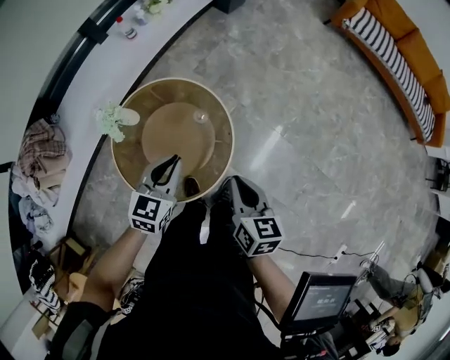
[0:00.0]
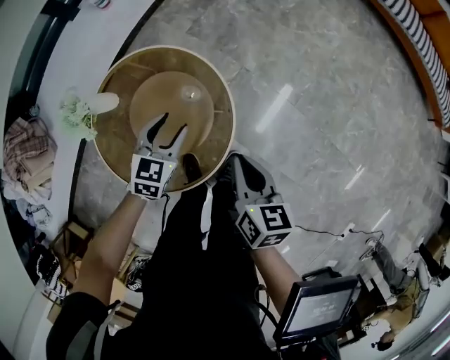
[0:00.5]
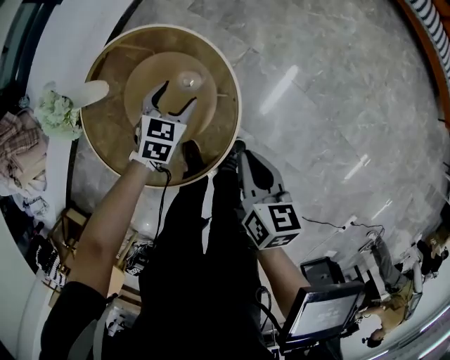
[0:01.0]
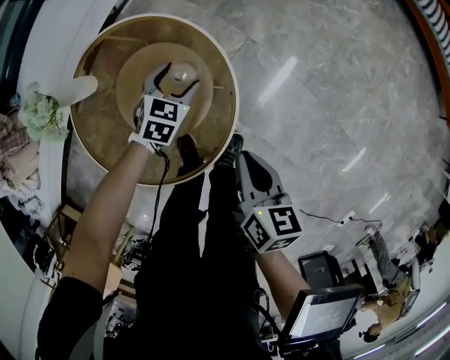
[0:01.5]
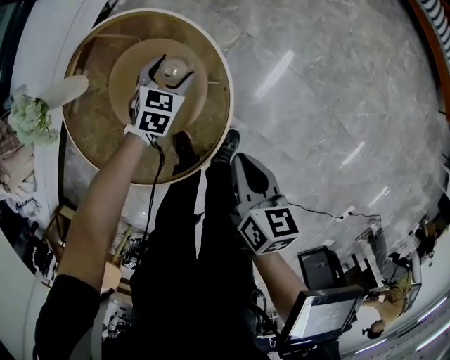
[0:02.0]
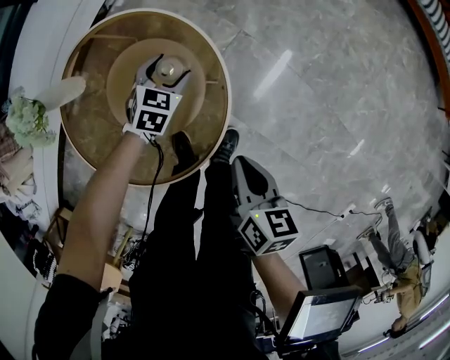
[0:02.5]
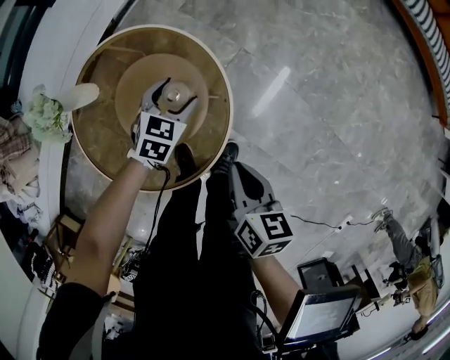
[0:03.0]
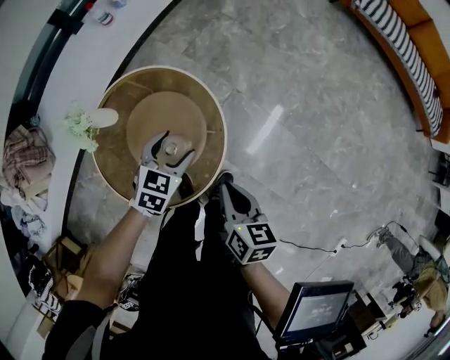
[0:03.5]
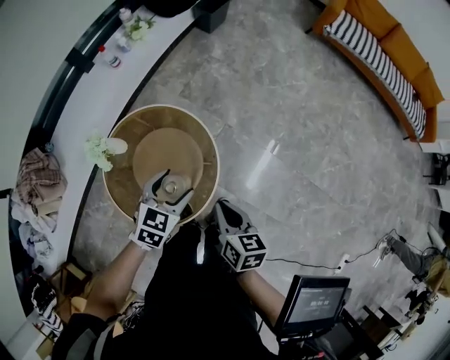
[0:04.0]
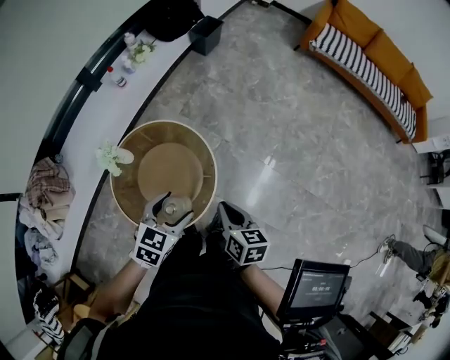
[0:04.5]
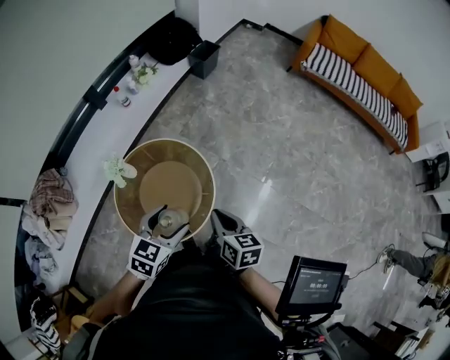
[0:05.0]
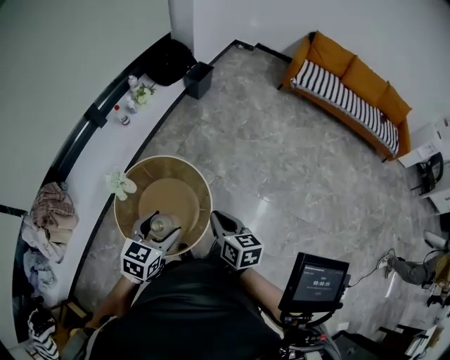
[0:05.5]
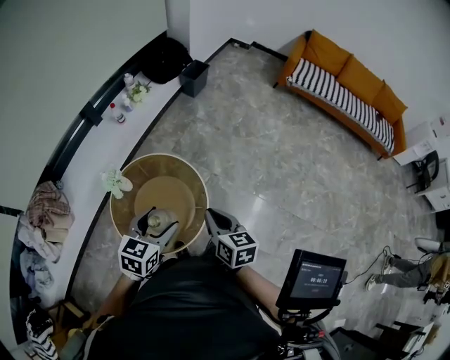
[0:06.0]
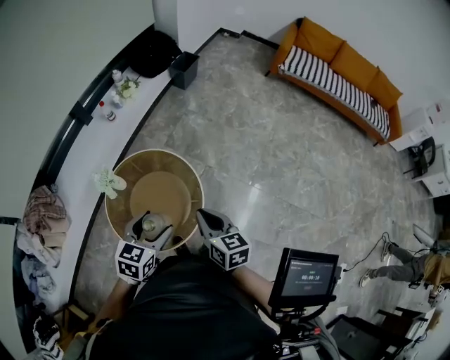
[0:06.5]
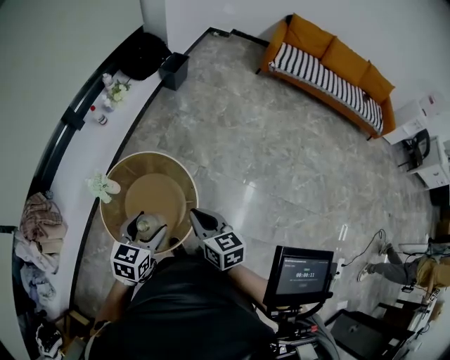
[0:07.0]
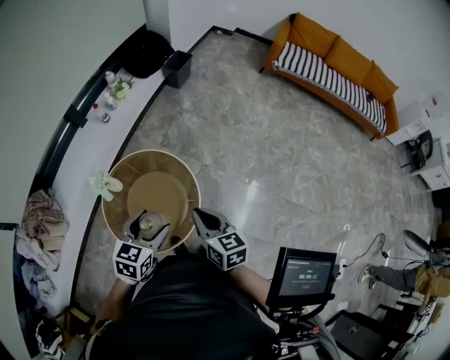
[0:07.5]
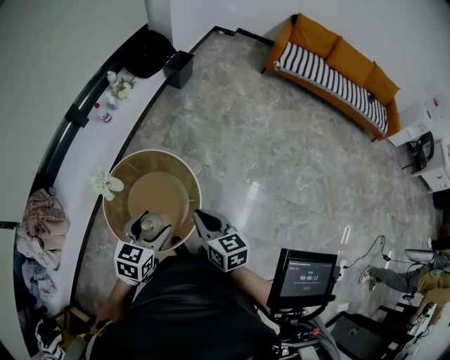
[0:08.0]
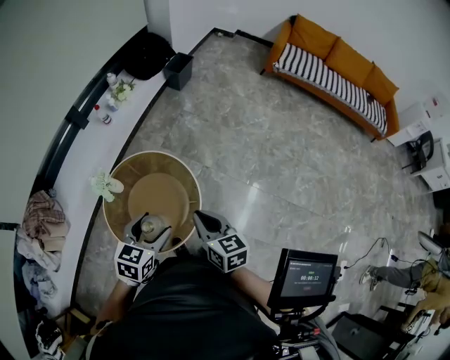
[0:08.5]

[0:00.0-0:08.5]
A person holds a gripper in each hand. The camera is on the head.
0:00.0 to 0:02.0: The right gripper is displaced downward by about 20 cm; the left gripper travels downward and forward by about 40 cm, swivels some 20 degrees, and opens.
0:02.0 to 0:04.0: The right gripper goes approximately 15 cm upward, while the left gripper goes about 35 cm upward and backward.
0:04.0 to 0:06.5: The left gripper moves upward and backward, approximately 20 cm, while the right gripper shifts approximately 15 cm upward.
0:06.5 to 0:08.5: The two grippers keep their place.

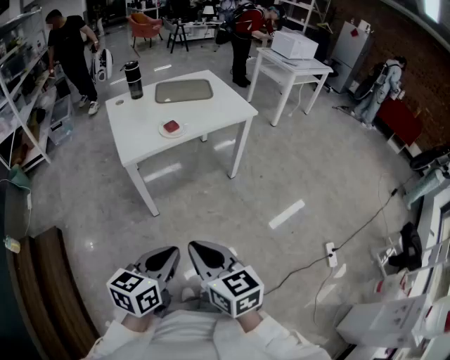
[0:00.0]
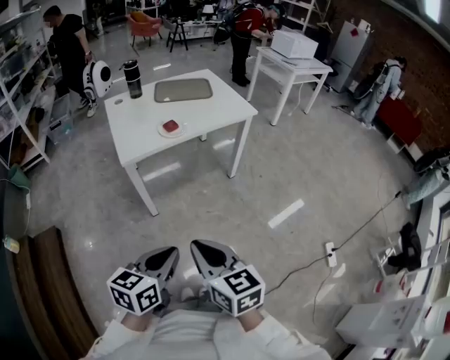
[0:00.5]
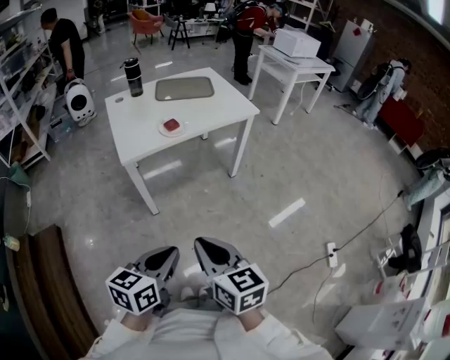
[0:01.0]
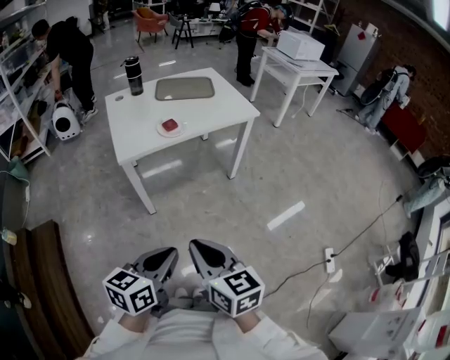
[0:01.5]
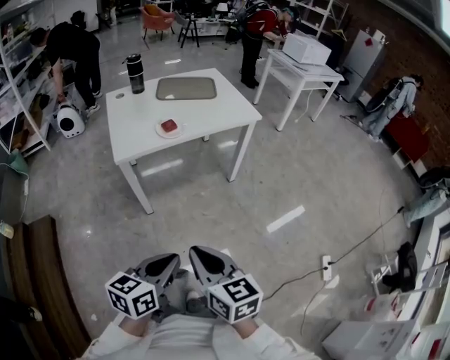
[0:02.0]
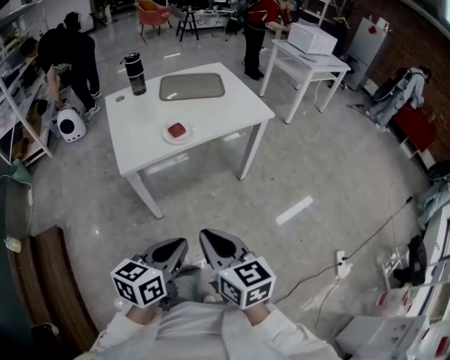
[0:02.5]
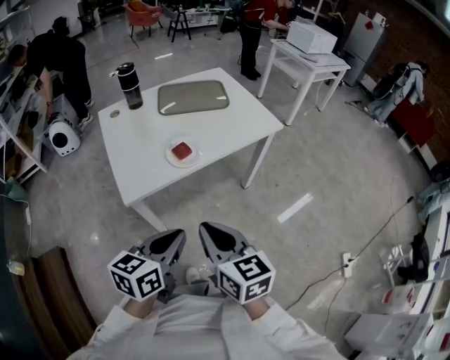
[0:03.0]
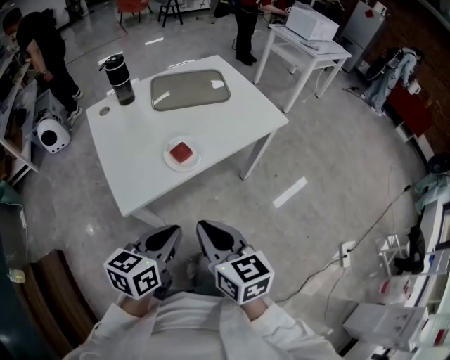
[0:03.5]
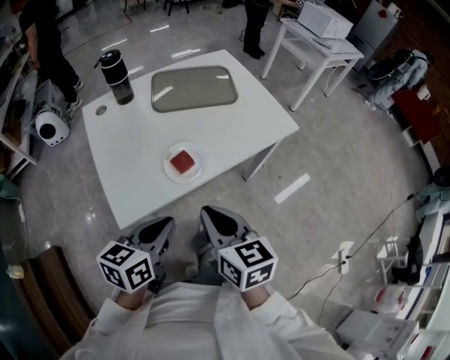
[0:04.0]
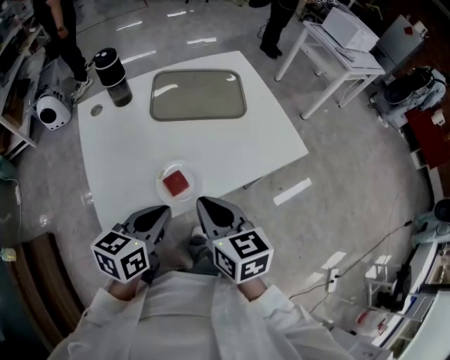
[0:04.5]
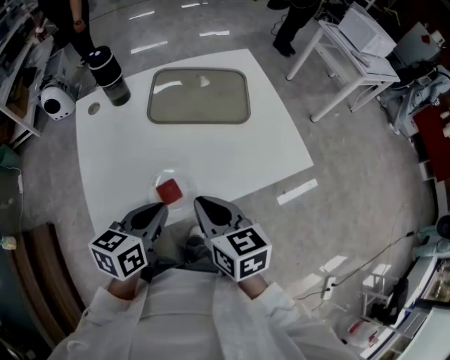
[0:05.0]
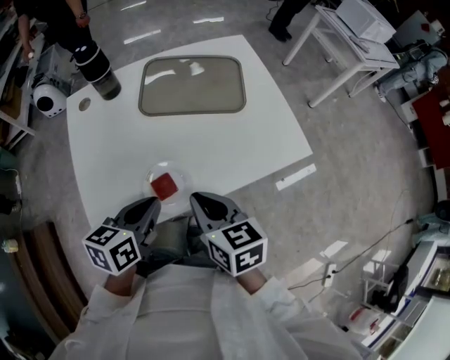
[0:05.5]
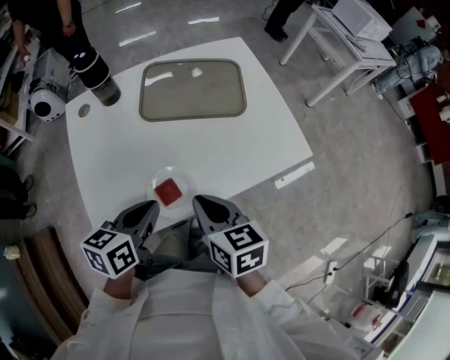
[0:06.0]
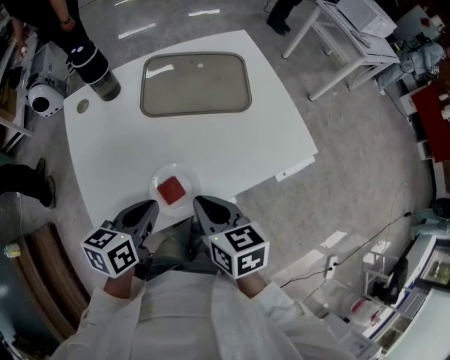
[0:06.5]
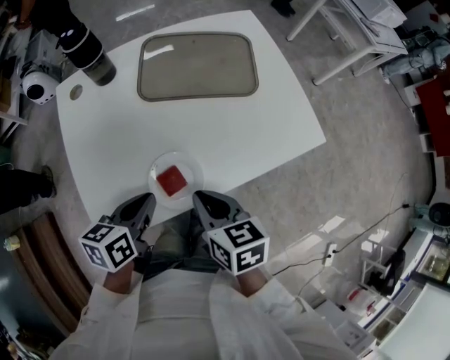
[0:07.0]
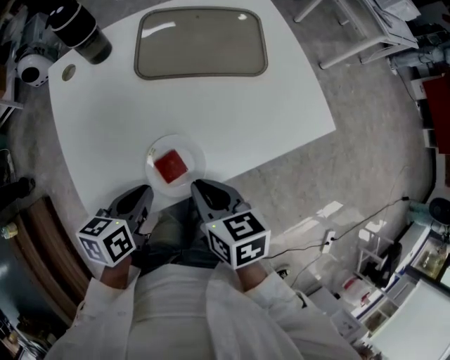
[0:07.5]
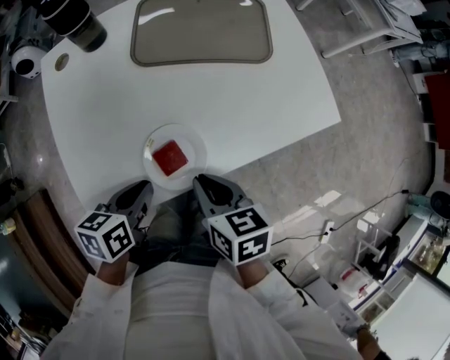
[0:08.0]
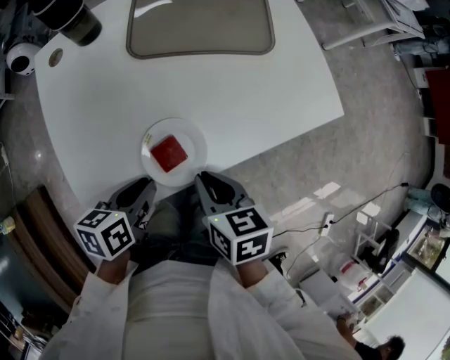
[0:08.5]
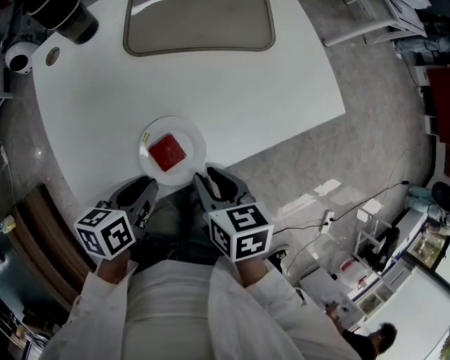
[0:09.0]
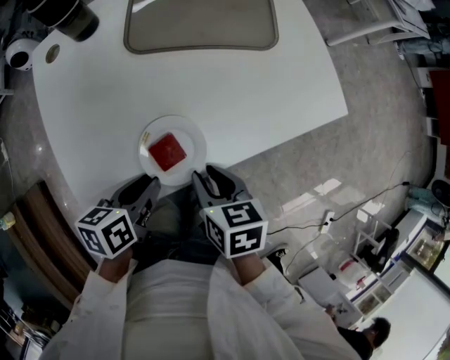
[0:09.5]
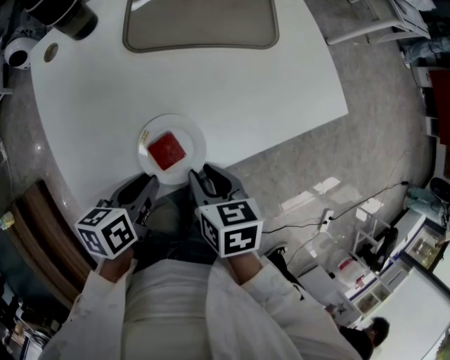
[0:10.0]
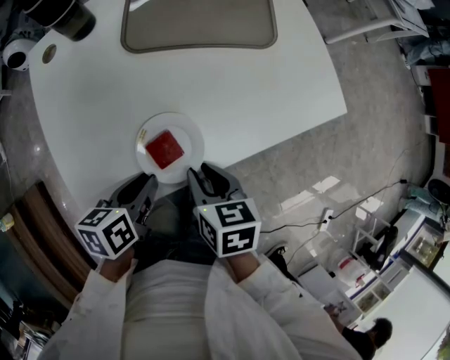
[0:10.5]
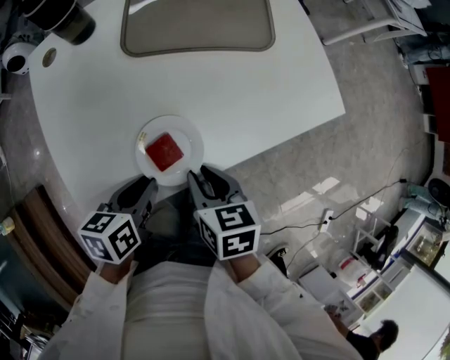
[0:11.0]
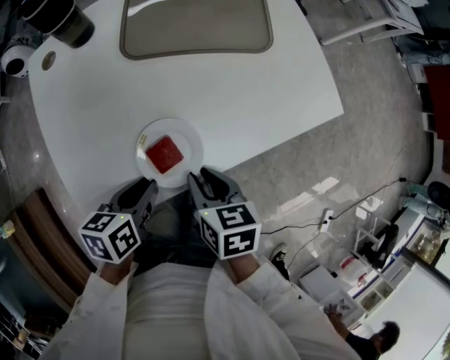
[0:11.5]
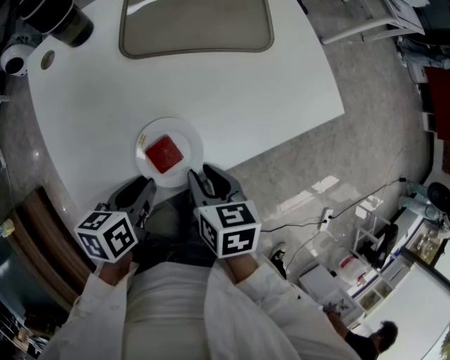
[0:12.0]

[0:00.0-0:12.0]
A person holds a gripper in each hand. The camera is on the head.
0:00.0 to 0:02.0: The right gripper ends up roughly 5 cm from where it was. The left gripper shifts by some 5 cm.
0:02.0 to 0:04.0: The pair of grippers is taken forward, approximately 40 cm.
0:04.0 to 0:06.0: The two grippers go approximately 20 cm forward.
0:06.0 to 0:08.0: Both grippers move downward, about 10 cm.
0:08.0 to 0:10.0: The right gripper opens.
0:10.0 to 0:12.0: The grippers stay close to where they were, moving slightly.

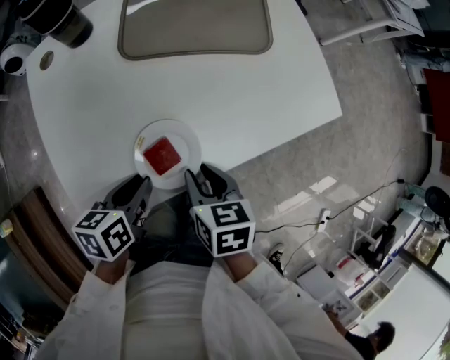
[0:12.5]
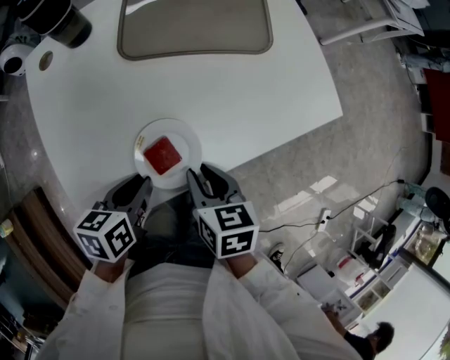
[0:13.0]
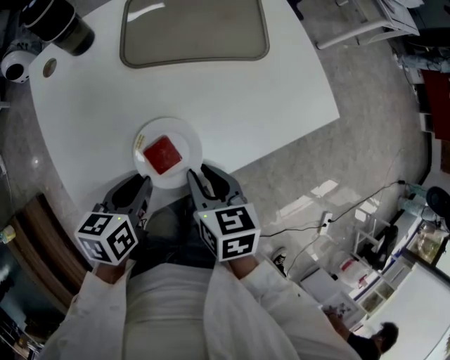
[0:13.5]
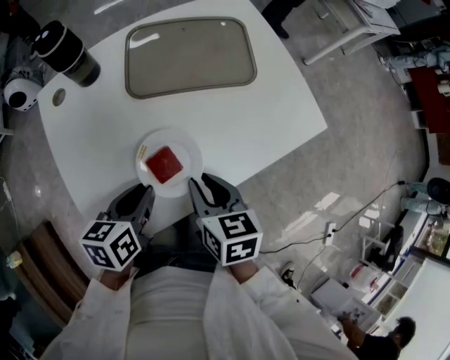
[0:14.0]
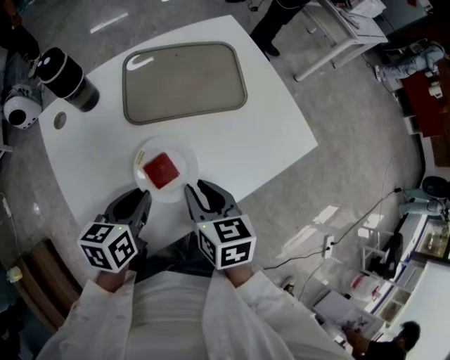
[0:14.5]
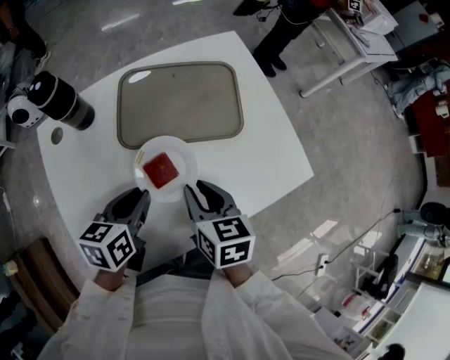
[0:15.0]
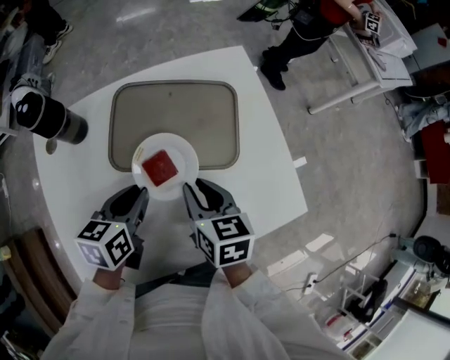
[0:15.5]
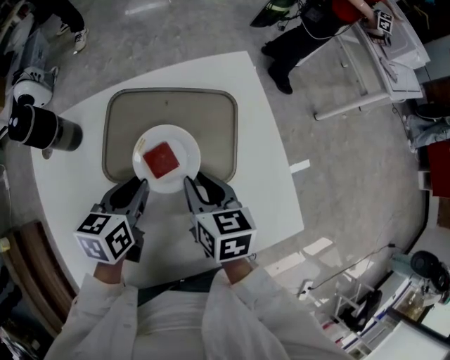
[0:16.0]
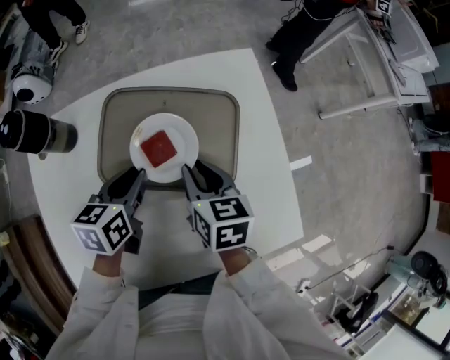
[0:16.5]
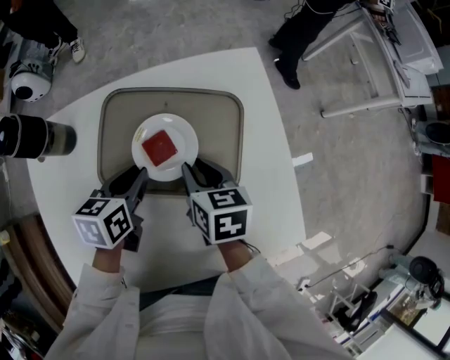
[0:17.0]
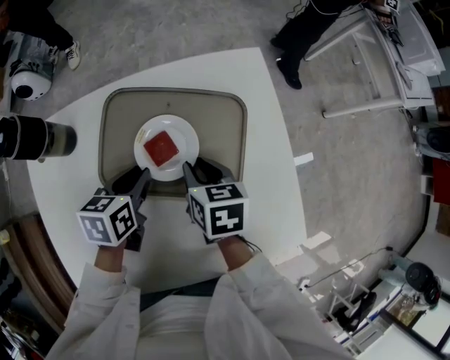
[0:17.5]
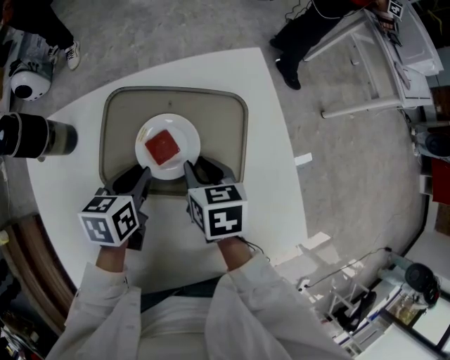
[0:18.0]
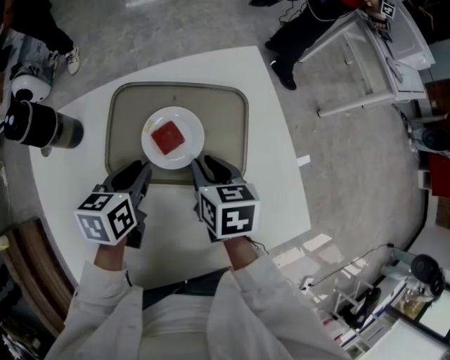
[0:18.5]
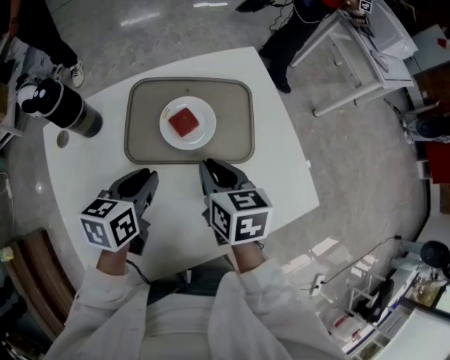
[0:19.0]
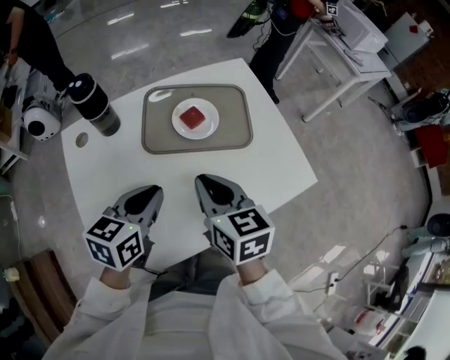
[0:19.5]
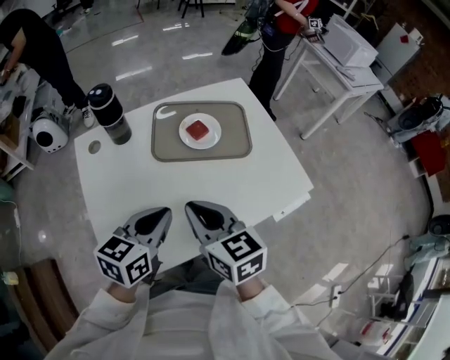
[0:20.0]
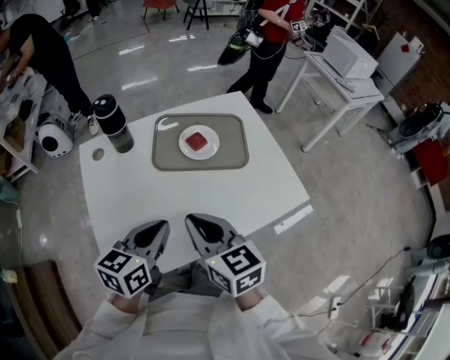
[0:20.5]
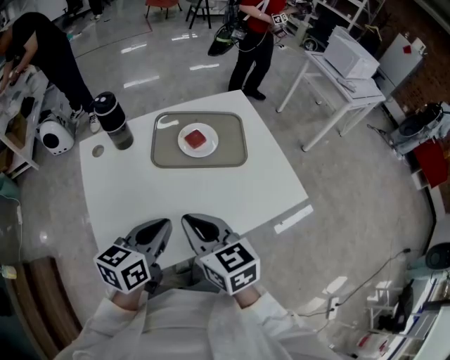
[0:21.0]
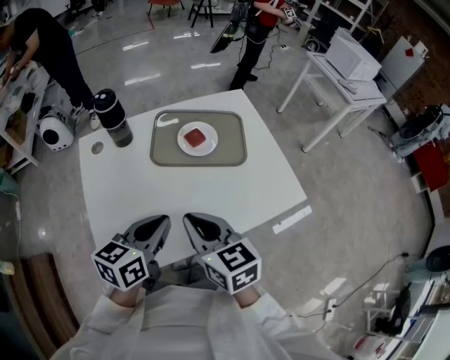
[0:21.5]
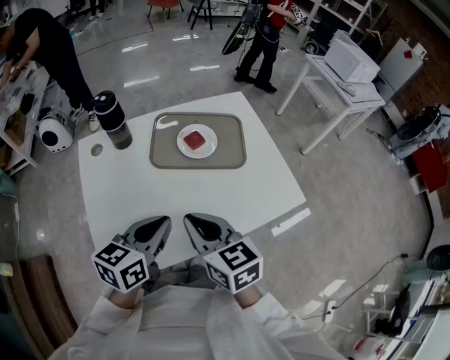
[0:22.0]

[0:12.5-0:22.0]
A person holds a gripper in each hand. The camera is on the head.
0:12.5 to 0:14.5: The two grippers go approximately 10 cm forward and upward.
0:14.5 to 0:16.5: The two grippers go approximately 25 cm forward.
0:16.5 to 0:18.0: The grippers move only a little.
0:18.0 to 0:20.0: The left gripper heads backward and upward, covering about 30 cm, and rotates roughly 30 degrees; the right gripper goes some 35 cm backward, upward and to the left, swivels some 30 degrees, and closes.
0:20.0 to 0:22.0: The grippers move only a little.
